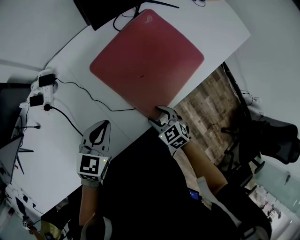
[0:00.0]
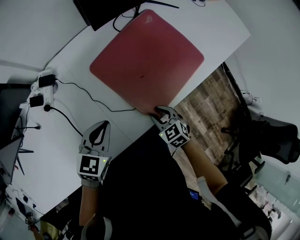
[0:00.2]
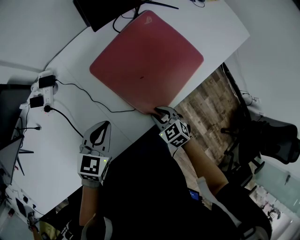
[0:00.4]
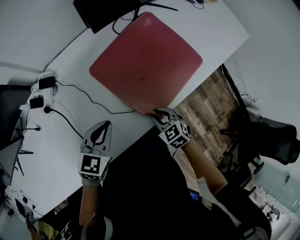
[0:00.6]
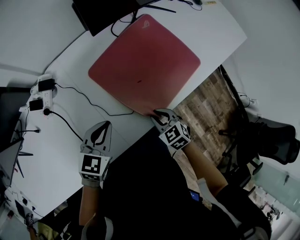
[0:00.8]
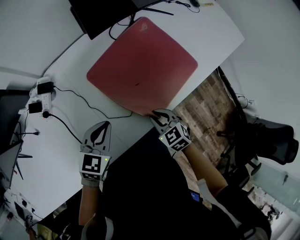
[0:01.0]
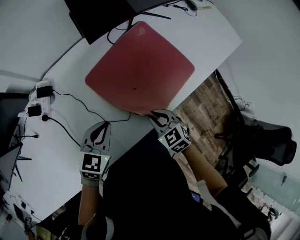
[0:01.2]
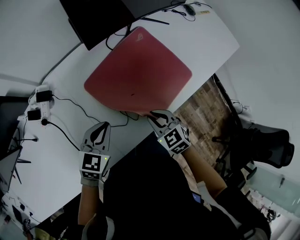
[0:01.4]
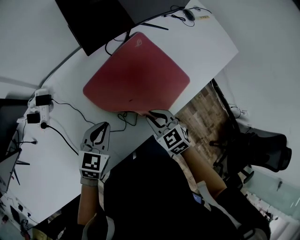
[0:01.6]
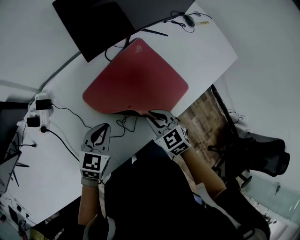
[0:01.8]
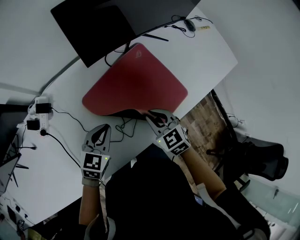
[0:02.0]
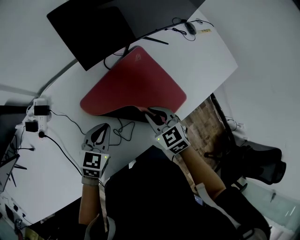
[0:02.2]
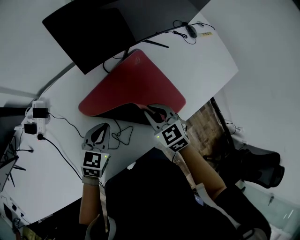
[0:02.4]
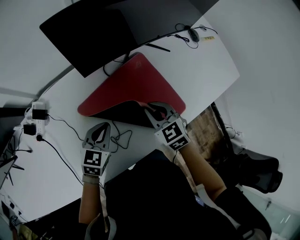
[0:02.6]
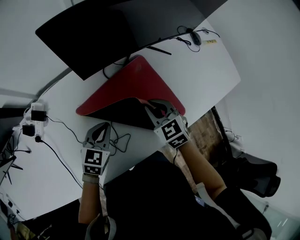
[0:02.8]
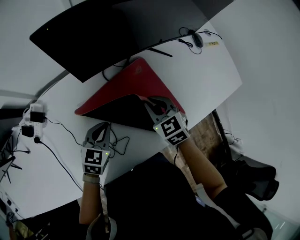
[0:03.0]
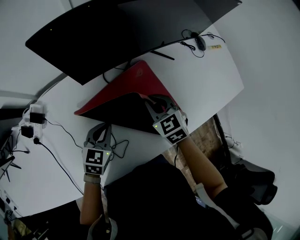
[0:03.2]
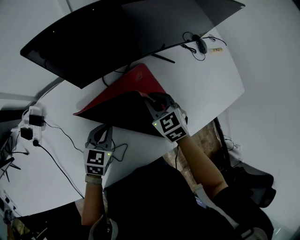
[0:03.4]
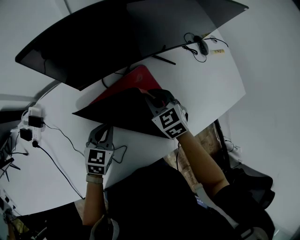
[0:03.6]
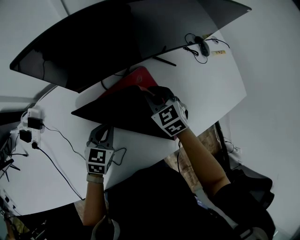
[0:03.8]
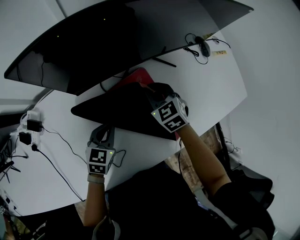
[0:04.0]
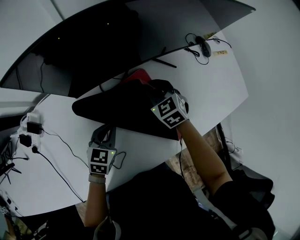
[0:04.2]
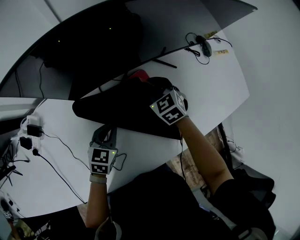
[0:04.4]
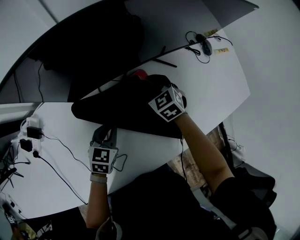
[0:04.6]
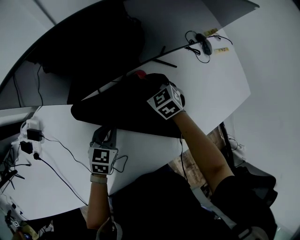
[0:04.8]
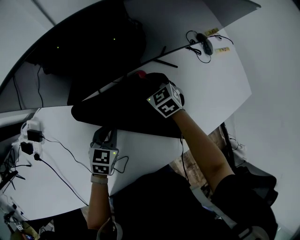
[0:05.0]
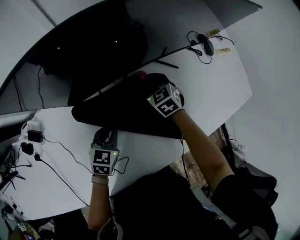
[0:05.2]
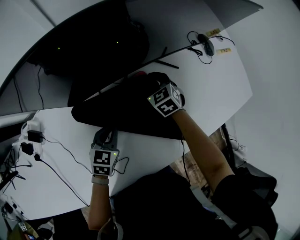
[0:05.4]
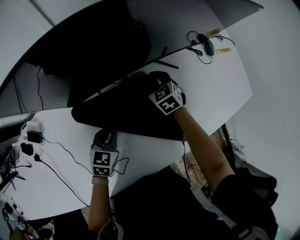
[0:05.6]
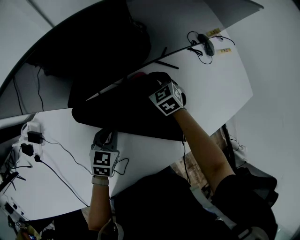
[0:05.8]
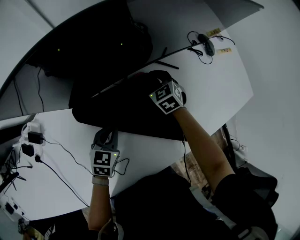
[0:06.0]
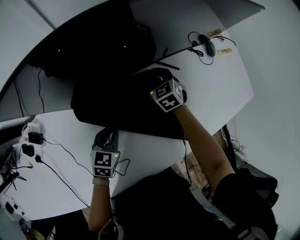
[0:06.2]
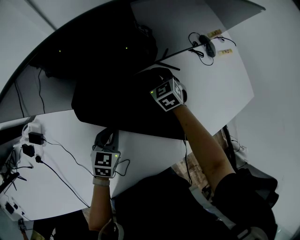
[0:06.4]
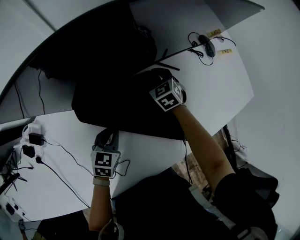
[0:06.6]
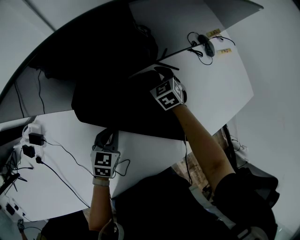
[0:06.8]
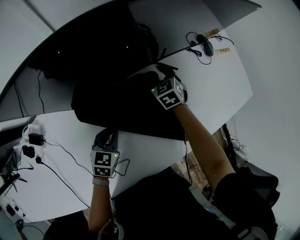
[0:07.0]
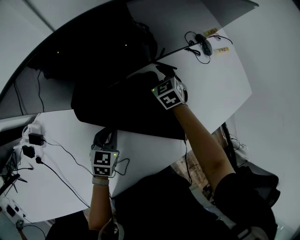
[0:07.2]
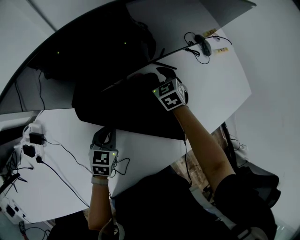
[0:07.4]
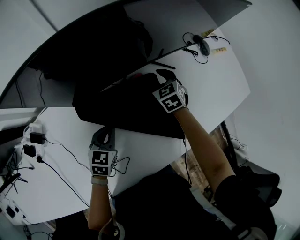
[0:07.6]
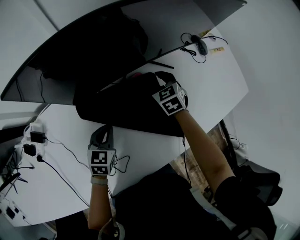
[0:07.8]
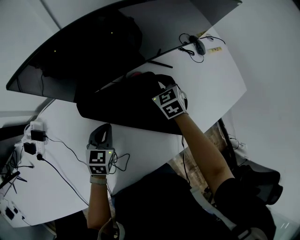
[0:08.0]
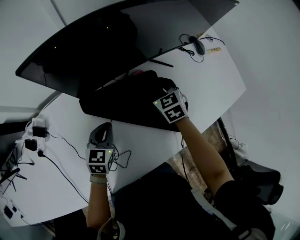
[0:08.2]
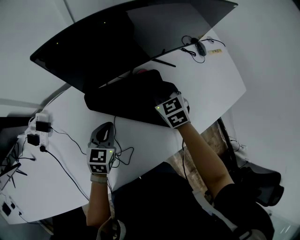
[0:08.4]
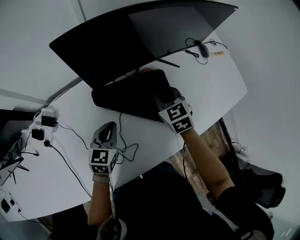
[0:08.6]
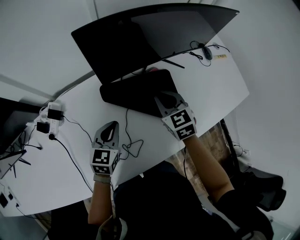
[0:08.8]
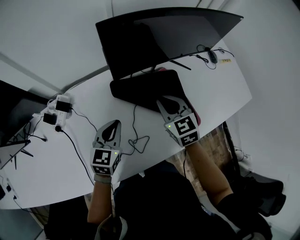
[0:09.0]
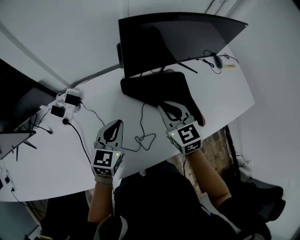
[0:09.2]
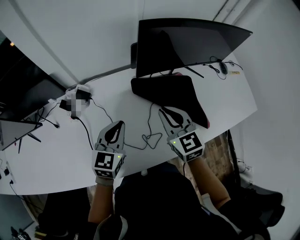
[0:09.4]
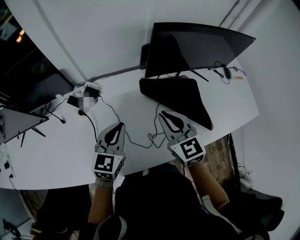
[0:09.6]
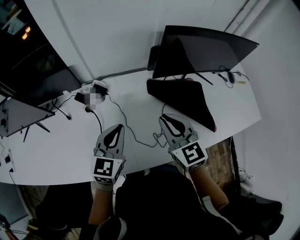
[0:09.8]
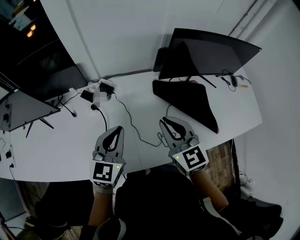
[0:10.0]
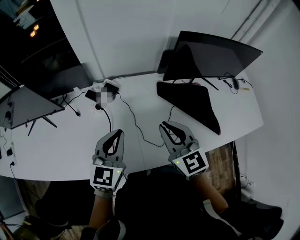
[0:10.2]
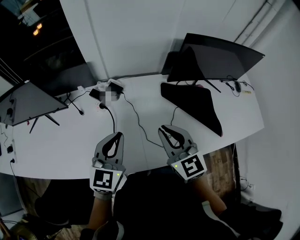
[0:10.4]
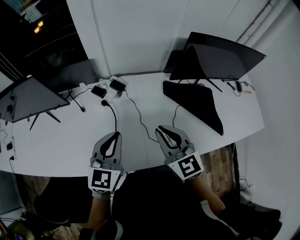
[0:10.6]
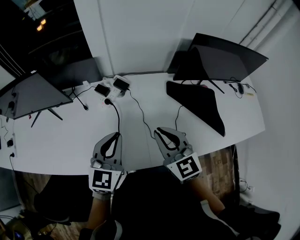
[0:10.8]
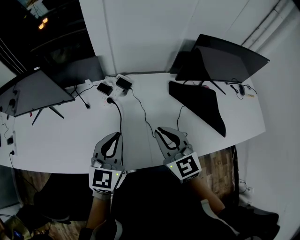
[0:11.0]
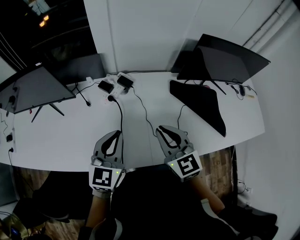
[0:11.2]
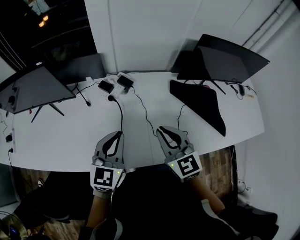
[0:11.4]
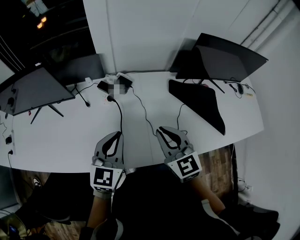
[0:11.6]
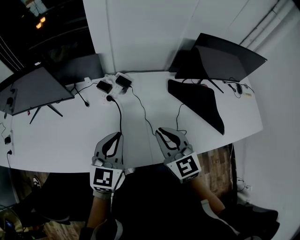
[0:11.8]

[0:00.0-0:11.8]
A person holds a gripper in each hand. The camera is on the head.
0:00.0 to 0:01.4: The right gripper goes about 10 cm upward and forward, and closes its fingers, while the left gripper shifts by roughly 5 cm.
0:01.4 to 0:03.0: The right gripper heads forward, covering some 25 cm. Meanwhile the left gripper travels forward and to the right by approximately 15 cm.
0:03.0 to 0:04.4: The left gripper moves forward, about 10 cm, while the right gripper goes approximately 15 cm forward.
0:04.4 to 0:06.0: The right gripper heads forward, covering about 5 cm.
0:06.0 to 0:07.4: The right gripper opens up.
0:07.4 to 0:08.8: The right gripper moves backward, upward and to the left, about 25 cm, and closes its fingers; the left gripper goes roughly 15 cm upward, backward and to the left.
0:08.8 to 0:10.4: The grippers both shift to the left, backward and upward by about 35 cm. The right gripper rotates roughly 30 degrees. Meanwhile the left gripper turns by about 20 degrees.
0:10.4 to 0:11.8: Both grippers travel together to the left, about 5 cm.

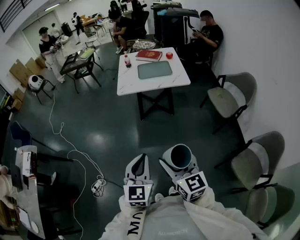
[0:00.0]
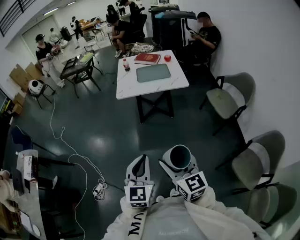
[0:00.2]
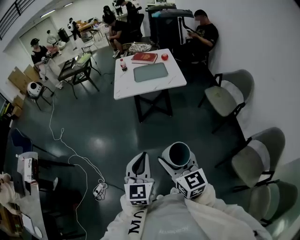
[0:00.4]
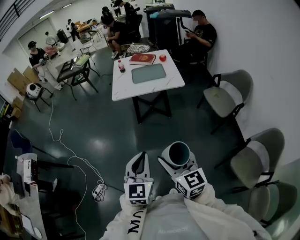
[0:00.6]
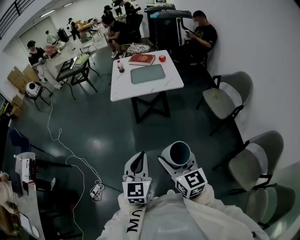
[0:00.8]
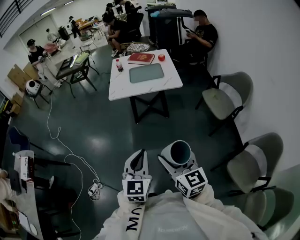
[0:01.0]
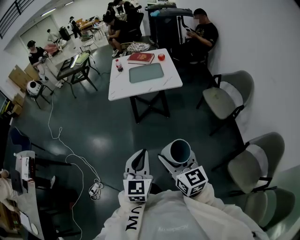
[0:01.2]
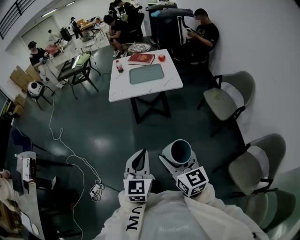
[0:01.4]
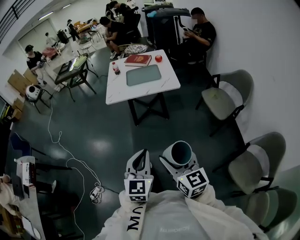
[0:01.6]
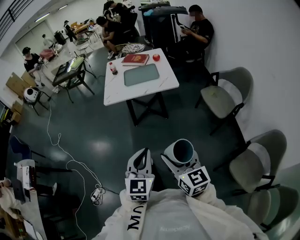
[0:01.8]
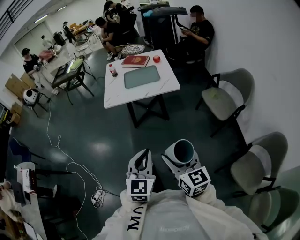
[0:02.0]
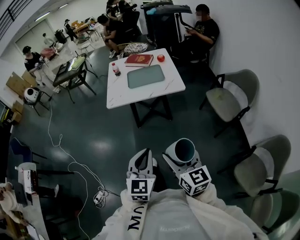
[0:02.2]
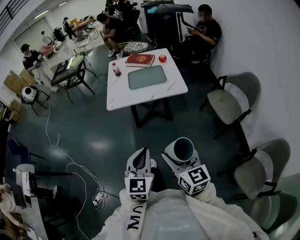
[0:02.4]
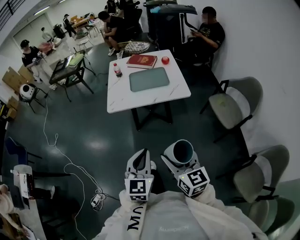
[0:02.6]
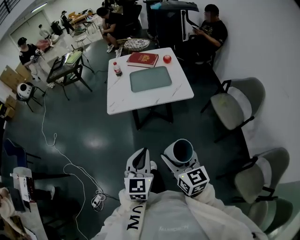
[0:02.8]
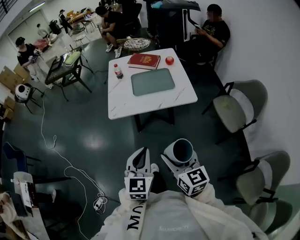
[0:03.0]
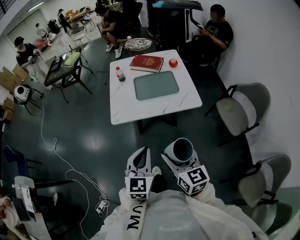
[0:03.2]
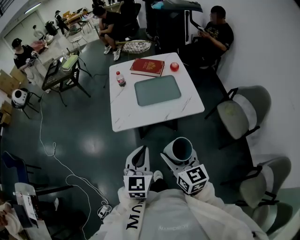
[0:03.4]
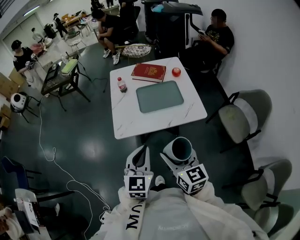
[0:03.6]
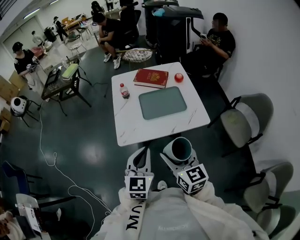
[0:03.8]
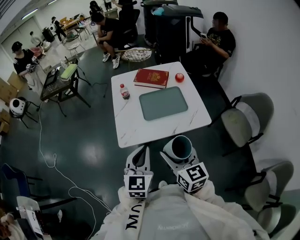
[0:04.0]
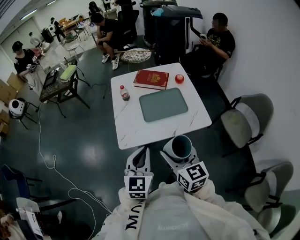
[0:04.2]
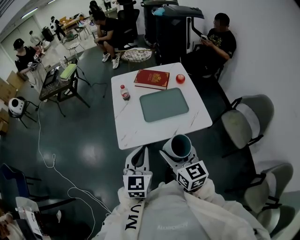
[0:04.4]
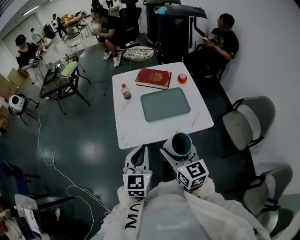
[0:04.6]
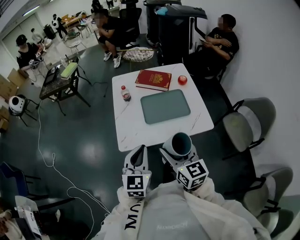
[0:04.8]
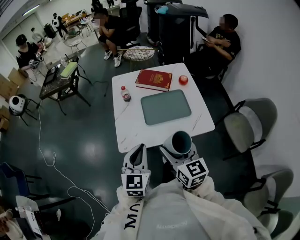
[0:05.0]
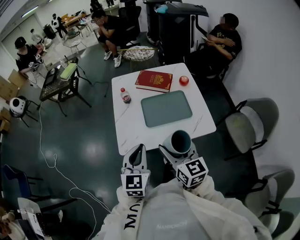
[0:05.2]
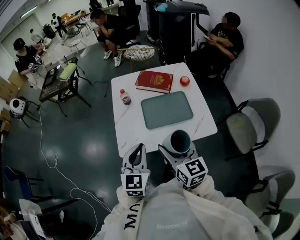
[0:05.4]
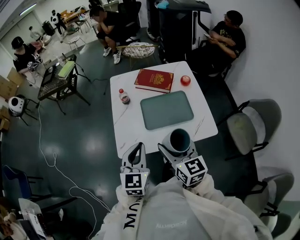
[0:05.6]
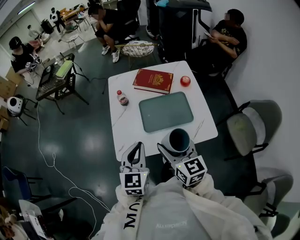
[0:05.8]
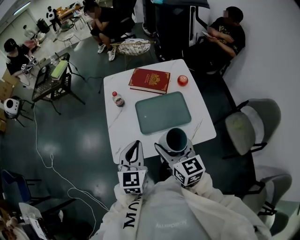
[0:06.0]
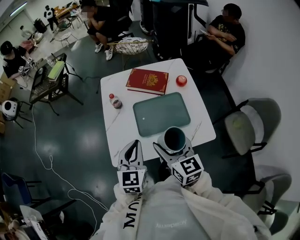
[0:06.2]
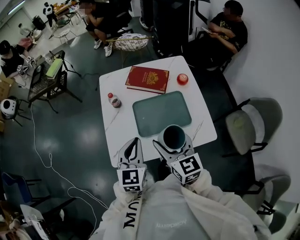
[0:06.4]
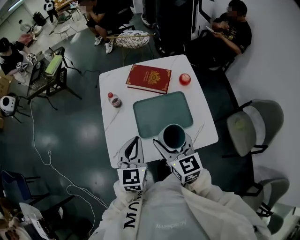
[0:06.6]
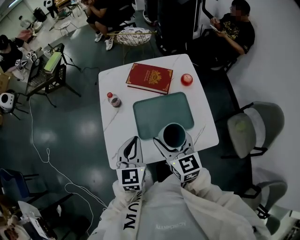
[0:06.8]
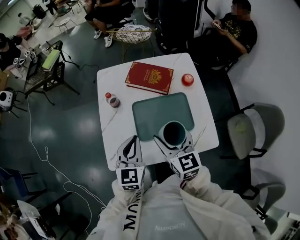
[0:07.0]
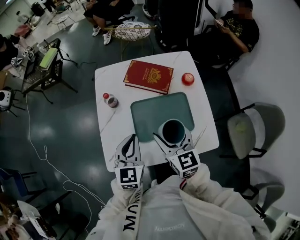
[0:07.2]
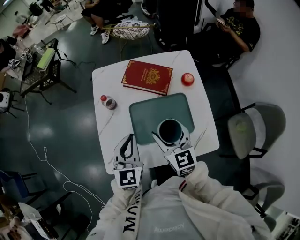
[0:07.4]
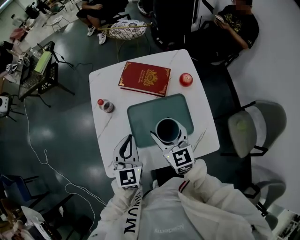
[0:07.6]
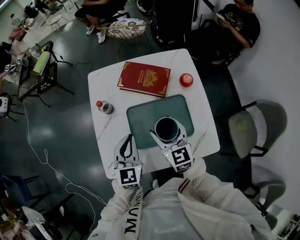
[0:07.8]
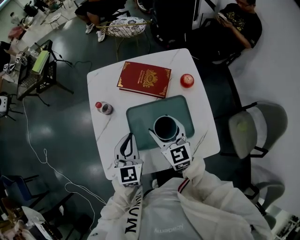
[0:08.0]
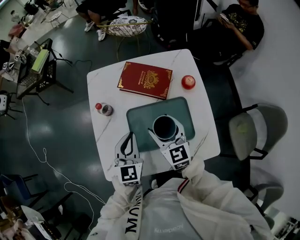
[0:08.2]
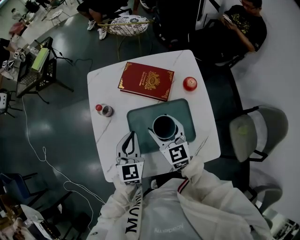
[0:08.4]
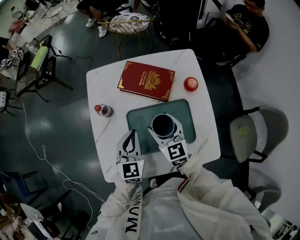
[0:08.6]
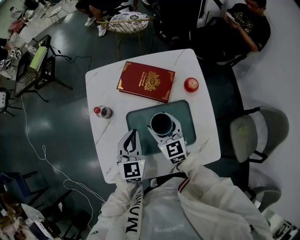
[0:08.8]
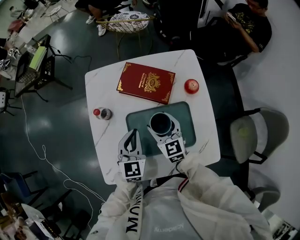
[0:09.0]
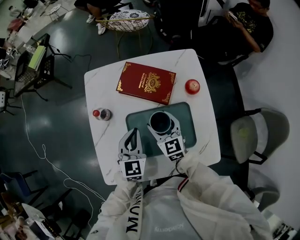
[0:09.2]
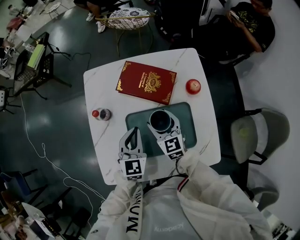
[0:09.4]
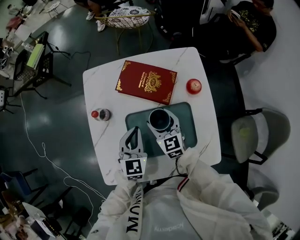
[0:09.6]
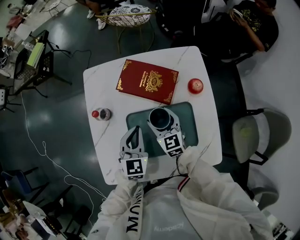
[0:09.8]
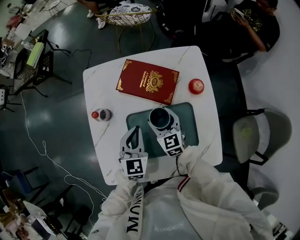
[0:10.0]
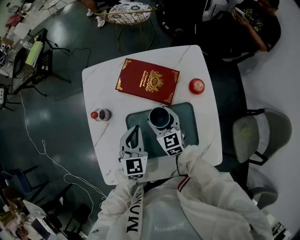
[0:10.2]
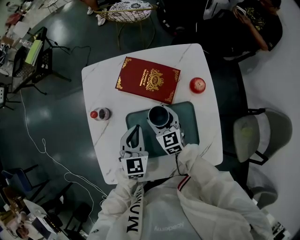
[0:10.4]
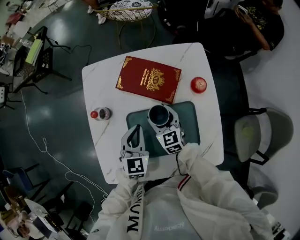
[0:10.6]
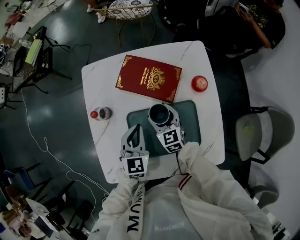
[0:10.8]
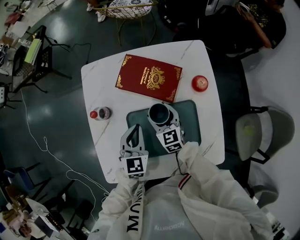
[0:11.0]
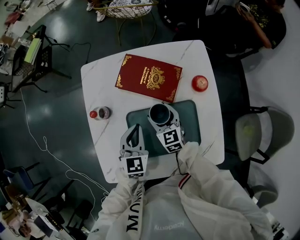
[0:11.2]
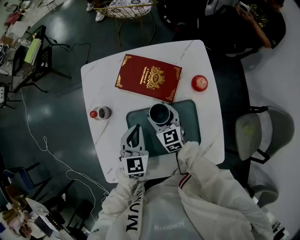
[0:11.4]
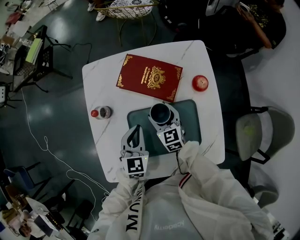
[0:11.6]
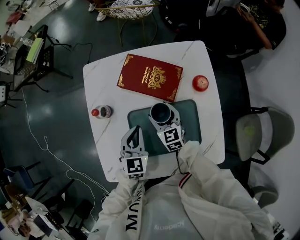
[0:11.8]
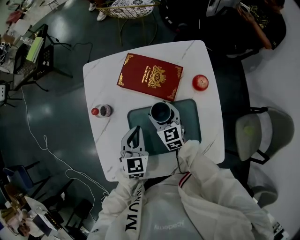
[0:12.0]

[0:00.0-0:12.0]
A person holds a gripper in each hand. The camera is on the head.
0:00.0 to 0:01.6: The left gripper moves to the right and forward, approximately 15 cm. Meanwhile the right gripper heads to the right, covering some 10 cm.
0:01.6 to 0:03.0: Both grippers move forward, some 25 cm.
0:03.0 to 0:04.4: Both grippers travel together forward, approximately 25 cm.
0:04.4 to 0:06.0: The grippers both shift forward by approximately 15 cm.
0:06.0 to 0:07.6: Both grippers travel together forward and downward, roughly 20 cm.
0:07.6 to 0:09.0: Both grippers move forward and downward, approximately 10 cm.
0:09.0 to 0:10.4: The right gripper travels downward by approximately 5 cm.
0:10.4 to 0:12.0: The grippers move only a little.
